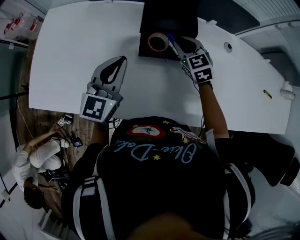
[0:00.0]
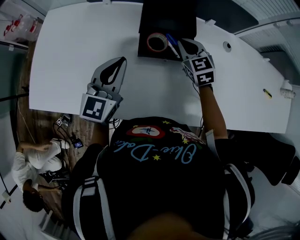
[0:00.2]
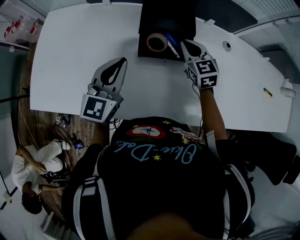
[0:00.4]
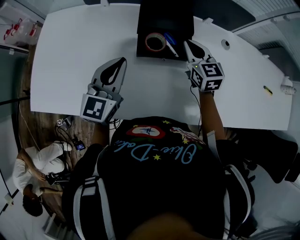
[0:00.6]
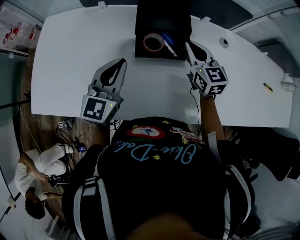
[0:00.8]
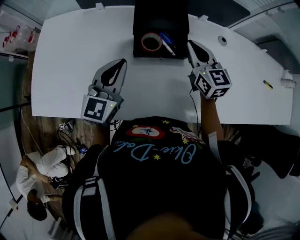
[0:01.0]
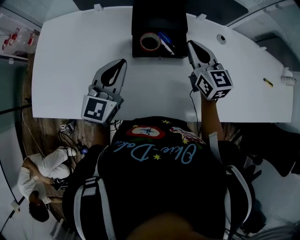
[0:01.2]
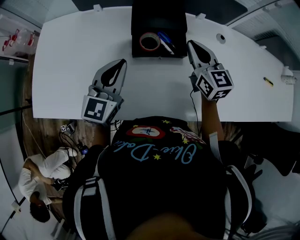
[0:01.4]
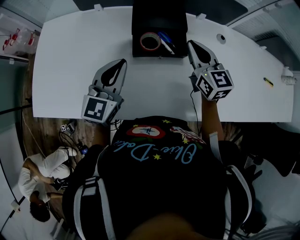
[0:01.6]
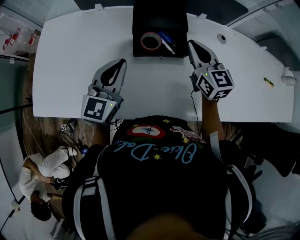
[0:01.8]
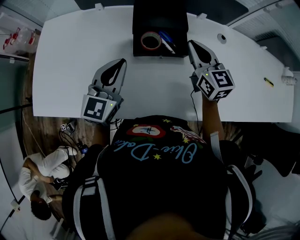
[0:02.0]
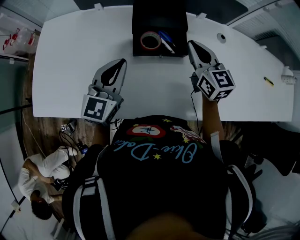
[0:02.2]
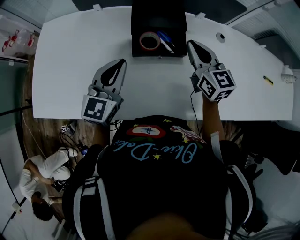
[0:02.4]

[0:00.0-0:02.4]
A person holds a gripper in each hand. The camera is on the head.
0:00.0 to 0:01.2: The right gripper moves upward, to the right and backward, some 10 cm, and turns by about 30 degrees.
0:01.2 to 0:02.4: The two grippers keep their place.

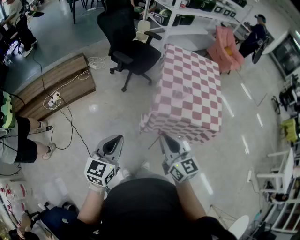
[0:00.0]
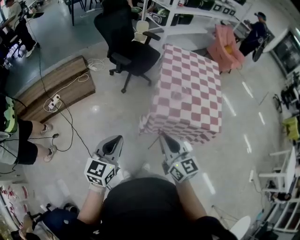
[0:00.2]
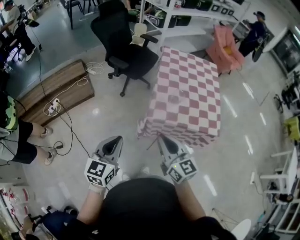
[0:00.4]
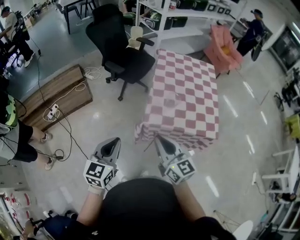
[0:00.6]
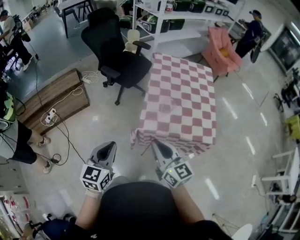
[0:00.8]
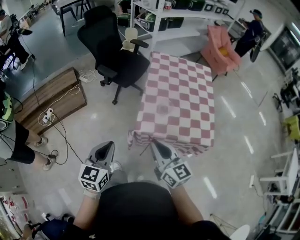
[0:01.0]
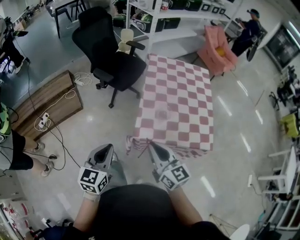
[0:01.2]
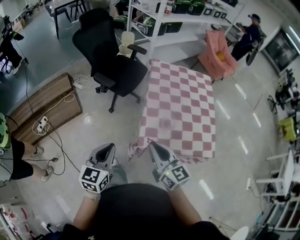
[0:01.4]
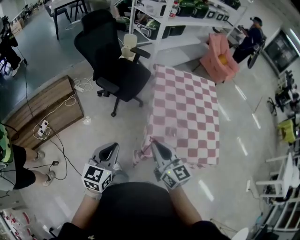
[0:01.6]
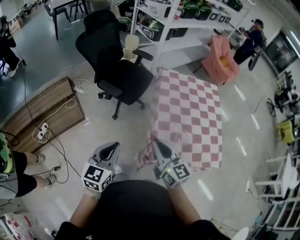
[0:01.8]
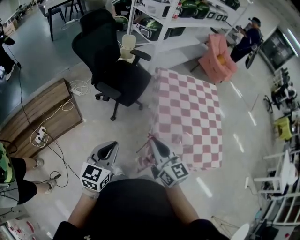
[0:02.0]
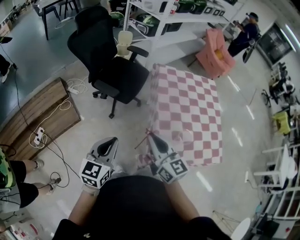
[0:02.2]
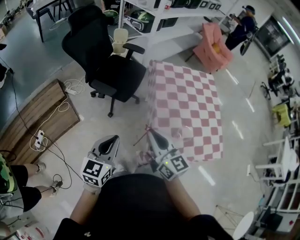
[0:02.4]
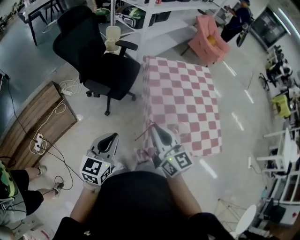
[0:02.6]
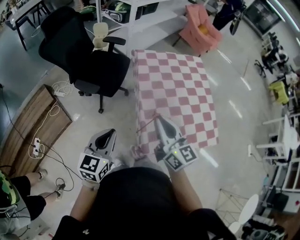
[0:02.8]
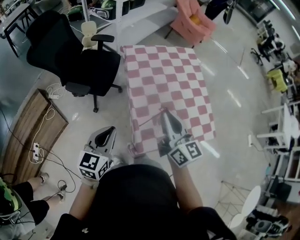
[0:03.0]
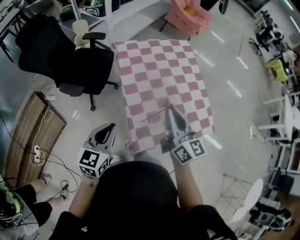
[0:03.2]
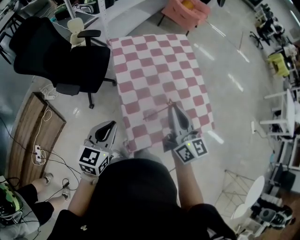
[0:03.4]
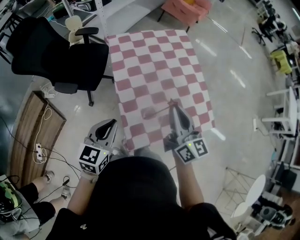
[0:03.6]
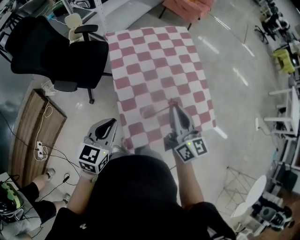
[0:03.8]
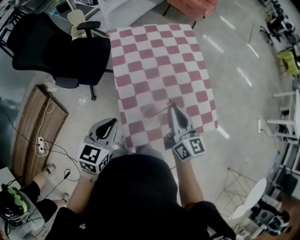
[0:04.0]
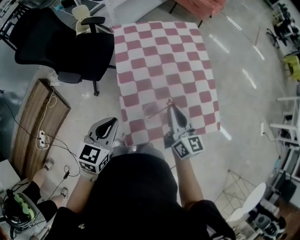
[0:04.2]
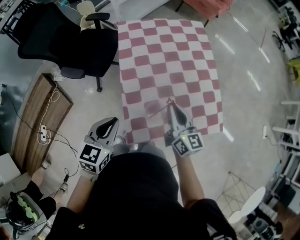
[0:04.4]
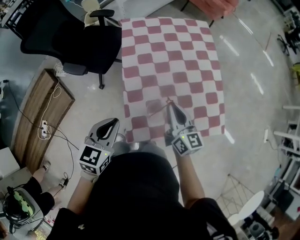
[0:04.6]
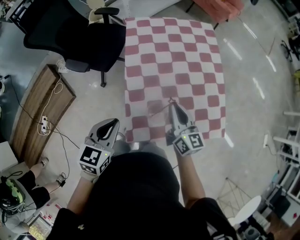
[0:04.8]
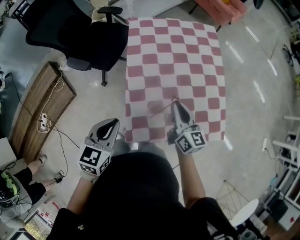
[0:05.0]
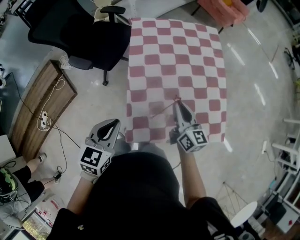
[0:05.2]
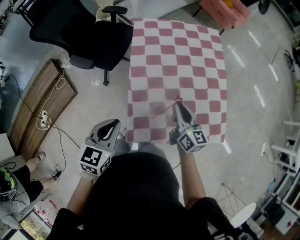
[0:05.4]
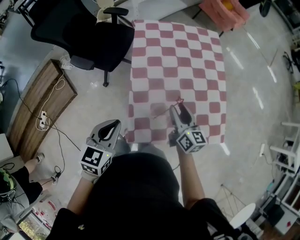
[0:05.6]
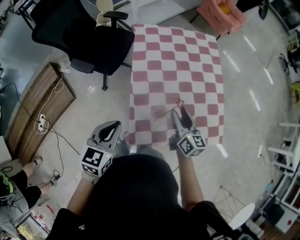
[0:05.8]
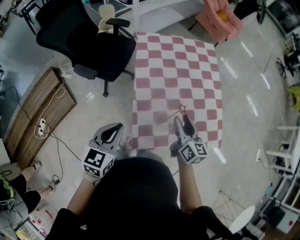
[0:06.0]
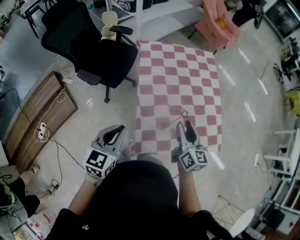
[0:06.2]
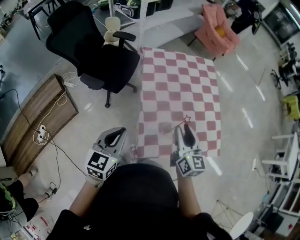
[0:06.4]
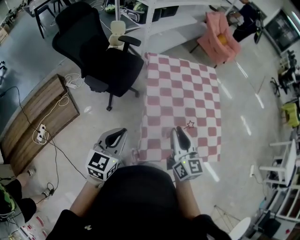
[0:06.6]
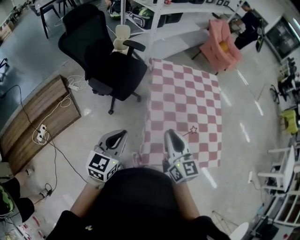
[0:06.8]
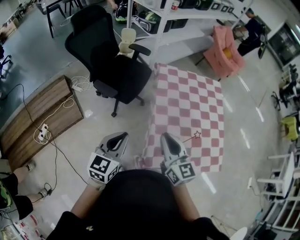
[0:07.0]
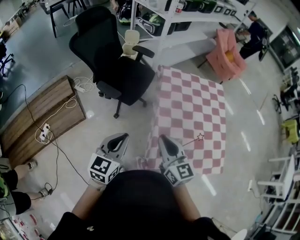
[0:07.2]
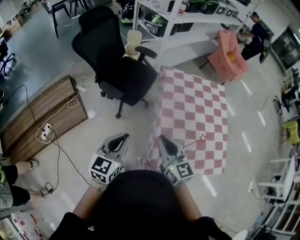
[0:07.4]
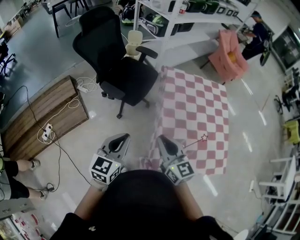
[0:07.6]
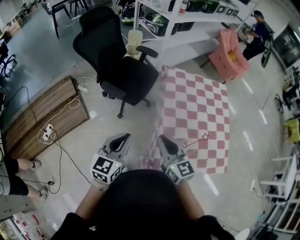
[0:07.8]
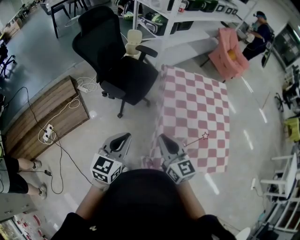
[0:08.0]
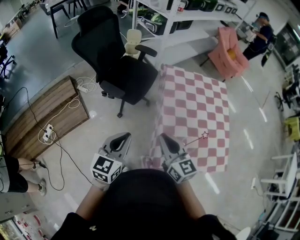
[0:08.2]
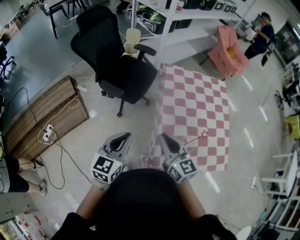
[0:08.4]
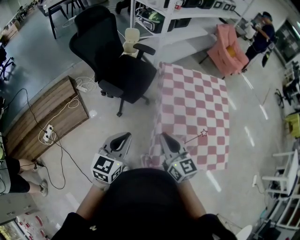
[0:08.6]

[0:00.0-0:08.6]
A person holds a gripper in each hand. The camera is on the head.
0:00.0 to 0:01.4: The two grippers go some 20 cm forward.
0:01.4 to 0:02.8: Both grippers travel together forward, roughly 20 cm.
0:02.8 to 0:04.4: The right gripper goes roughly 25 cm to the right, downward and forward. Meanwhile the left gripper heads to the right and forward, covering some 20 cm.
0:04.4 to 0:05.8: The right gripper opens its fingers.
0:05.8 to 0:07.2: The right gripper shifts roughly 30 cm to the left and upward, swivels roughly 30 degrees, and closes its fingers. The left gripper heads to the left and upward, covering some 15 cm.
0:07.2 to 0:08.6: The grippers make only small movements.

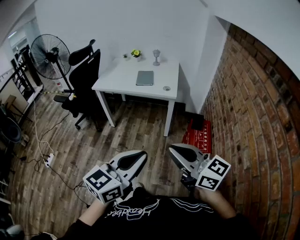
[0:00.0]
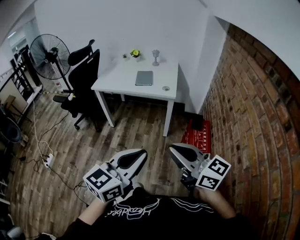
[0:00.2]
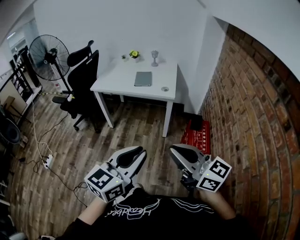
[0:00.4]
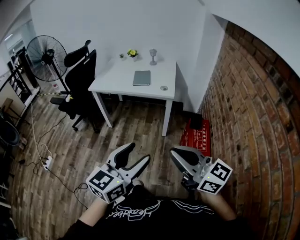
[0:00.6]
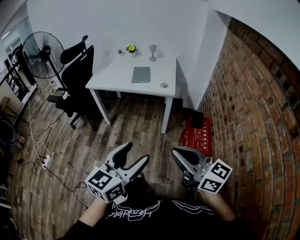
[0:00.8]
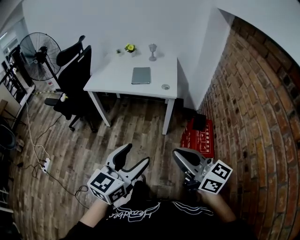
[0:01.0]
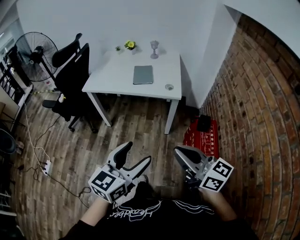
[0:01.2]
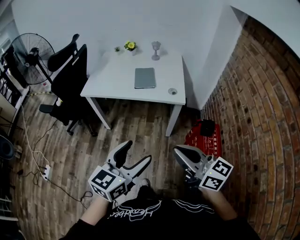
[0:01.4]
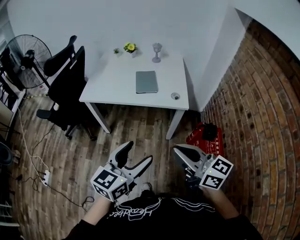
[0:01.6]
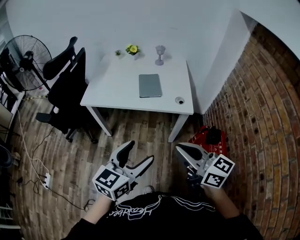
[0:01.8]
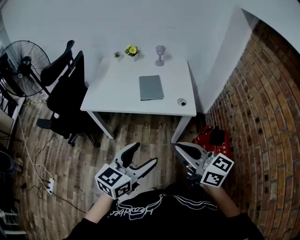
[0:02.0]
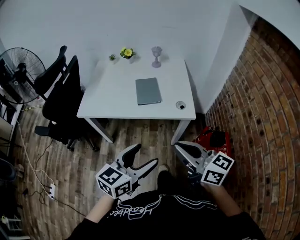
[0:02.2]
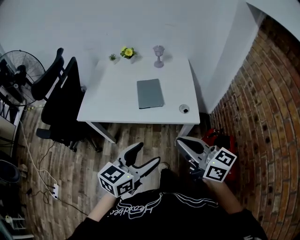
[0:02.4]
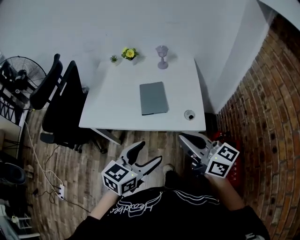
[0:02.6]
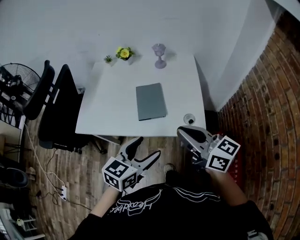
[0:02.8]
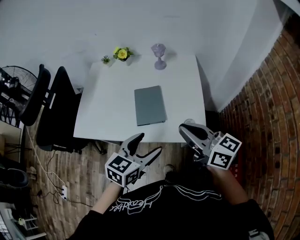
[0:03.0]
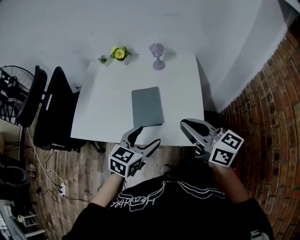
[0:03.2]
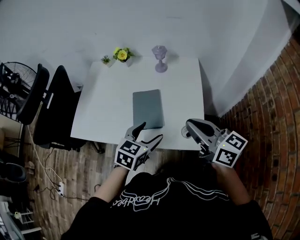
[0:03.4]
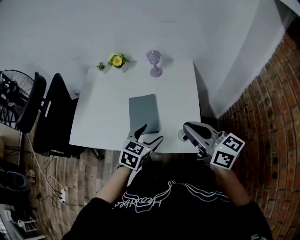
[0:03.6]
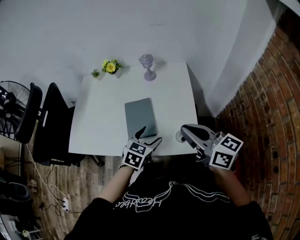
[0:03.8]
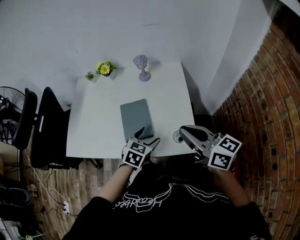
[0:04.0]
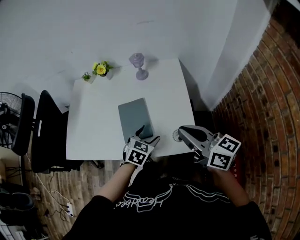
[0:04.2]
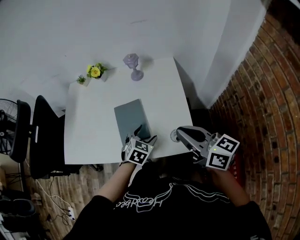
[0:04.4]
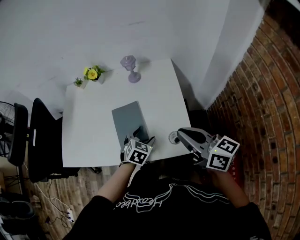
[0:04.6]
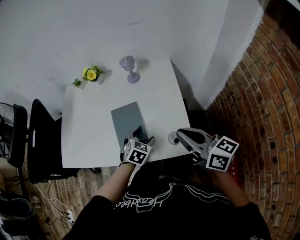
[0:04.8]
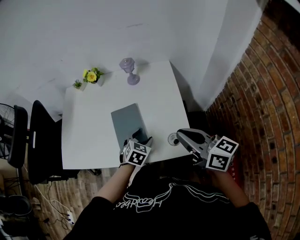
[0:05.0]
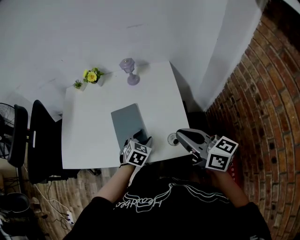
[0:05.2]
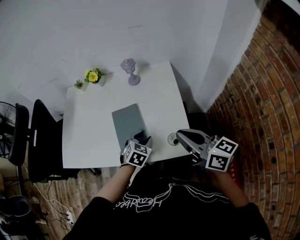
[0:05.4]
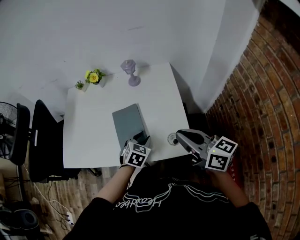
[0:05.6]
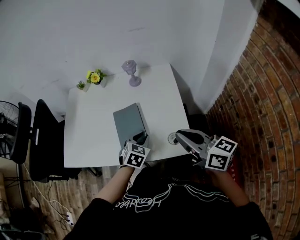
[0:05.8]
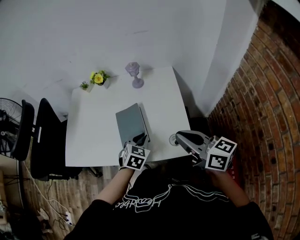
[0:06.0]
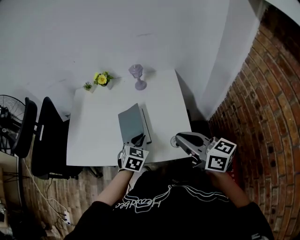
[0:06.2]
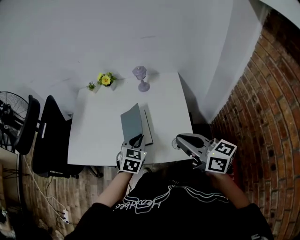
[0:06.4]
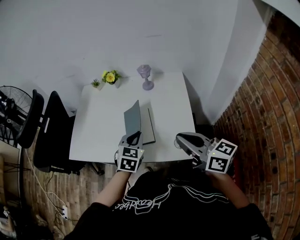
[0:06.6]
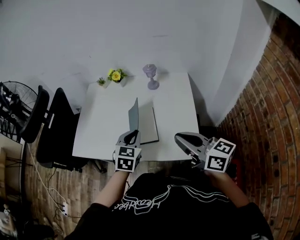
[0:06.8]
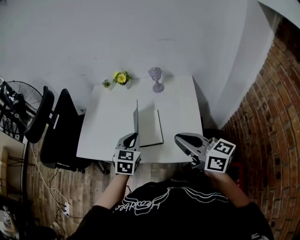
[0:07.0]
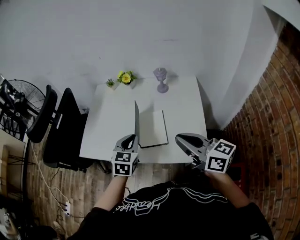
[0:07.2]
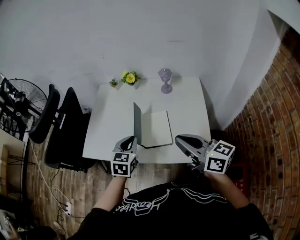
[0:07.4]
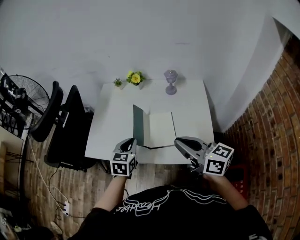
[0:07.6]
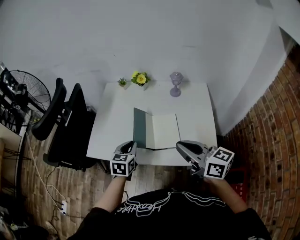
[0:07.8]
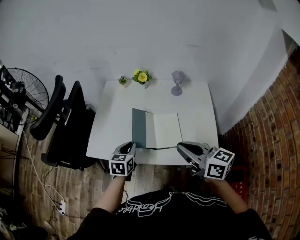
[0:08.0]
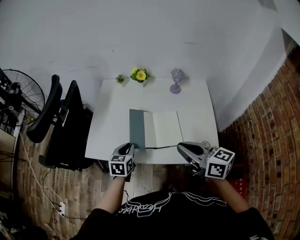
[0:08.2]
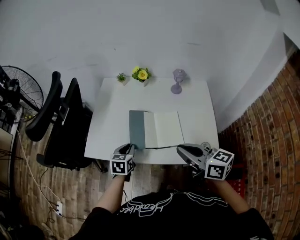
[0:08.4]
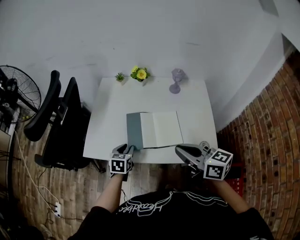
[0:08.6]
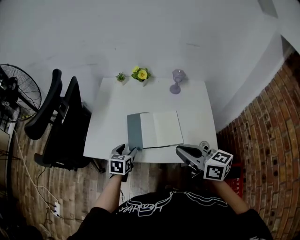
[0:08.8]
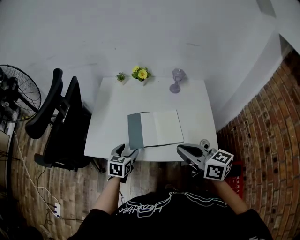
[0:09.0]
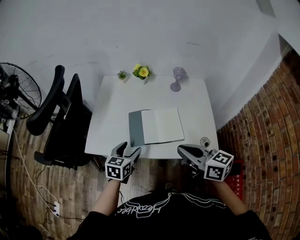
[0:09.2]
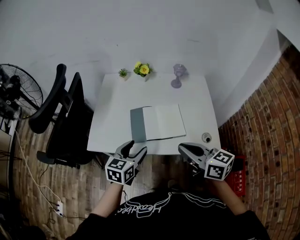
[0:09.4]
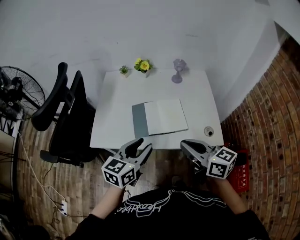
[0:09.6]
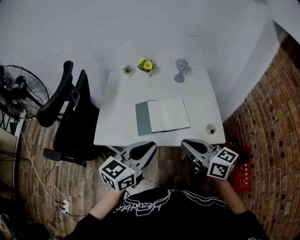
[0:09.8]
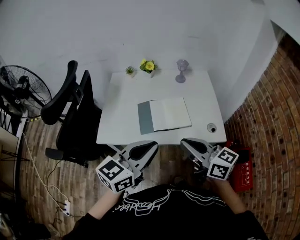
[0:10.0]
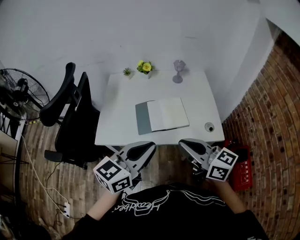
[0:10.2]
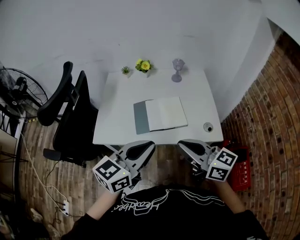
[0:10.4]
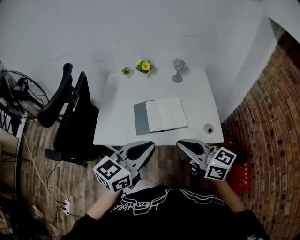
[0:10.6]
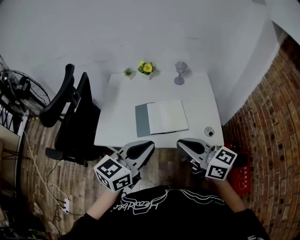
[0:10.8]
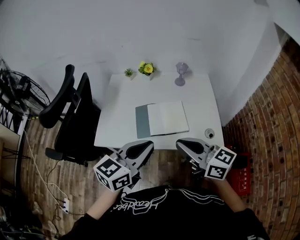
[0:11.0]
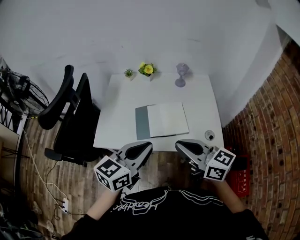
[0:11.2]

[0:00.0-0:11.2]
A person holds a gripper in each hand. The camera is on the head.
0:00.0 to 0:01.6: The two grippers go roughly 25 cm forward. The left gripper opens up.
0:01.6 to 0:03.2: Both grippers travel together forward, roughly 40 cm. The left gripper turns by approximately 20 degrees.
0:03.2 to 0:04.8: The right gripper travels to the right by about 5 cm; the left gripper is displaced downward and forward by some 15 cm, and turns by some 30 degrees.
0:04.8 to 0:06.4: The left gripper moves upward, some 10 cm, and closes.
0:06.4 to 0:08.0: Both grippers travel together to the left, some 20 cm. The left gripper swivels about 30 degrees.
0:08.0 to 0:09.6: The left gripper goes roughly 15 cm backward and upward, swivels roughly 30 degrees, and opens up. The right gripper heads backward, covering roughly 5 cm.
0:09.6 to 0:11.2: The left gripper travels upward by approximately 5 cm, and closes.

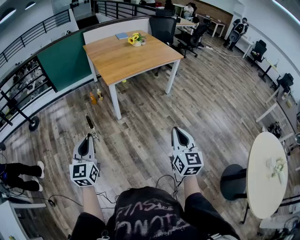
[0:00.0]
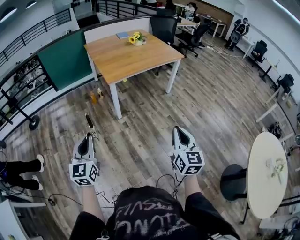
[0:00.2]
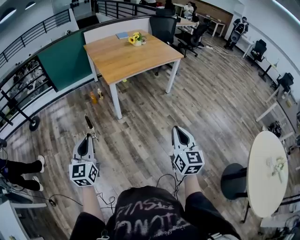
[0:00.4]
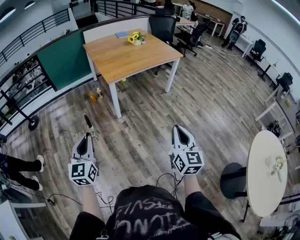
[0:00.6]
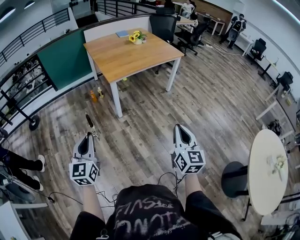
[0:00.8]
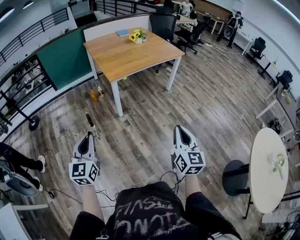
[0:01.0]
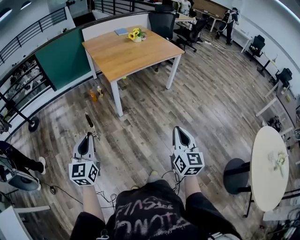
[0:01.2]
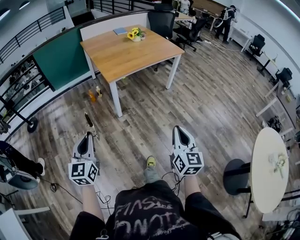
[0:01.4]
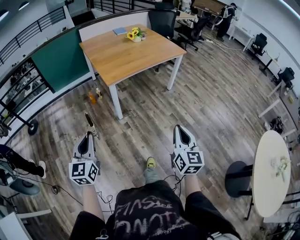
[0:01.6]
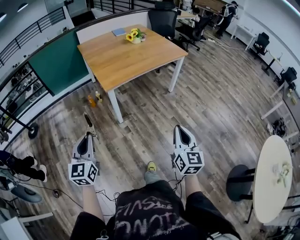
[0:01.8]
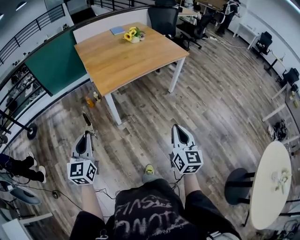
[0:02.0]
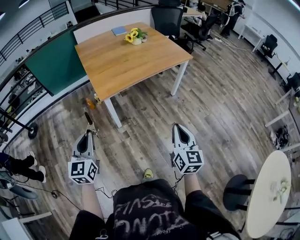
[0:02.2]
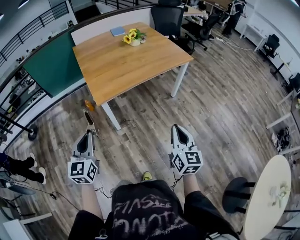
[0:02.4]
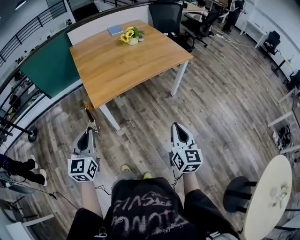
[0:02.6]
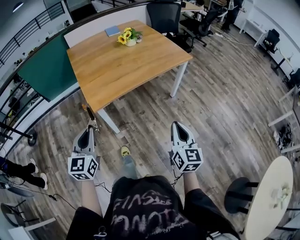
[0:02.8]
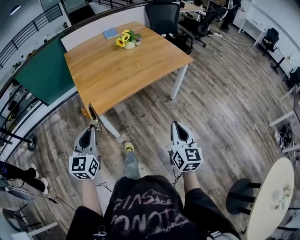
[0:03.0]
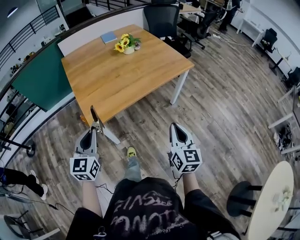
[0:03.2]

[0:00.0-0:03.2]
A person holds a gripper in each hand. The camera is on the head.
0:00.0 to 0:01.6: The two grippers go some 10 cm forward.
0:01.6 to 0:03.2: The two grippers travel together, forward, some 40 cm.
